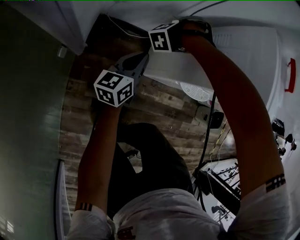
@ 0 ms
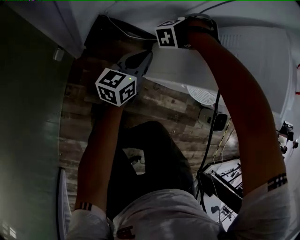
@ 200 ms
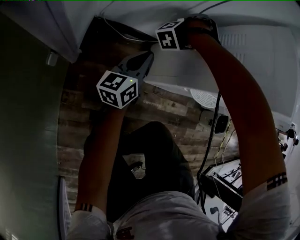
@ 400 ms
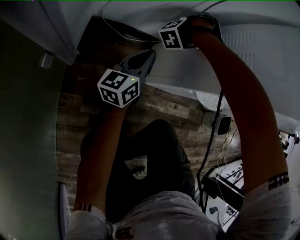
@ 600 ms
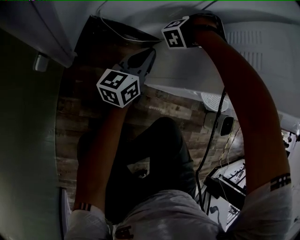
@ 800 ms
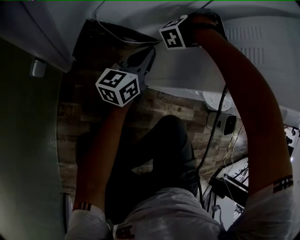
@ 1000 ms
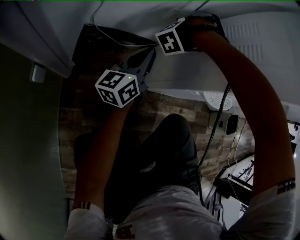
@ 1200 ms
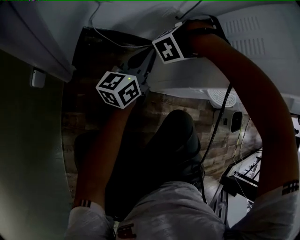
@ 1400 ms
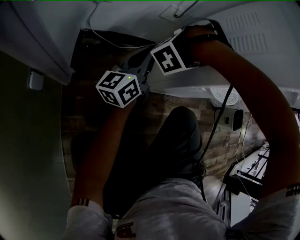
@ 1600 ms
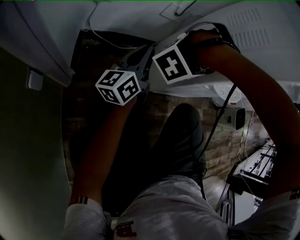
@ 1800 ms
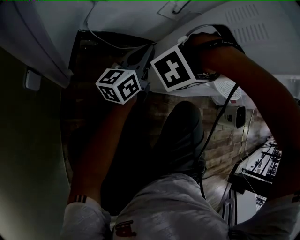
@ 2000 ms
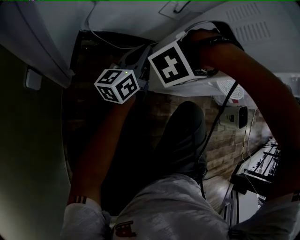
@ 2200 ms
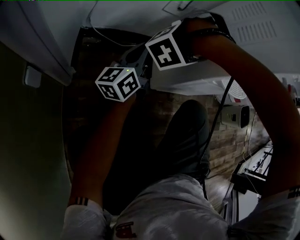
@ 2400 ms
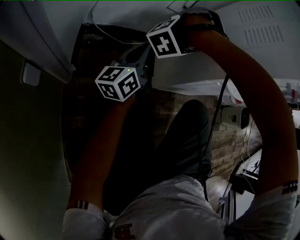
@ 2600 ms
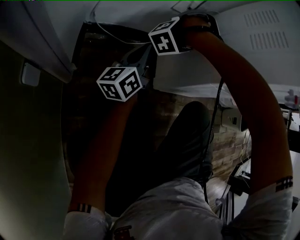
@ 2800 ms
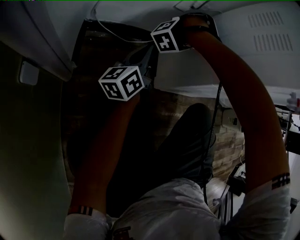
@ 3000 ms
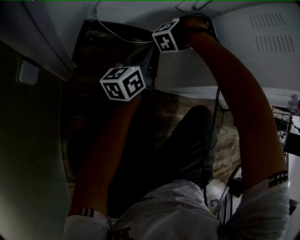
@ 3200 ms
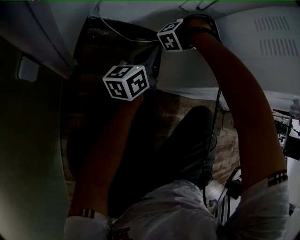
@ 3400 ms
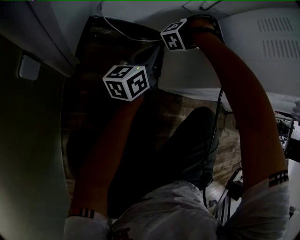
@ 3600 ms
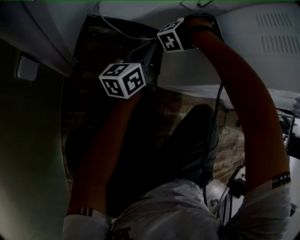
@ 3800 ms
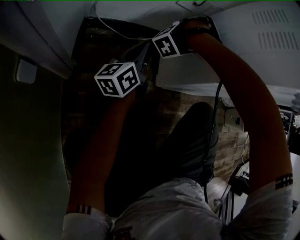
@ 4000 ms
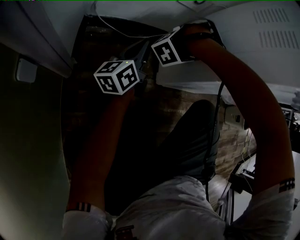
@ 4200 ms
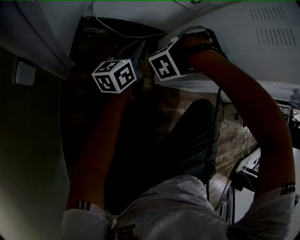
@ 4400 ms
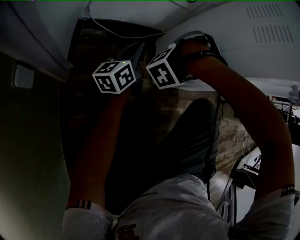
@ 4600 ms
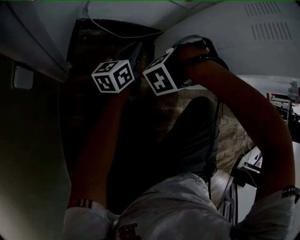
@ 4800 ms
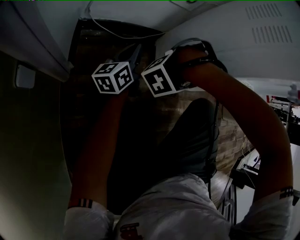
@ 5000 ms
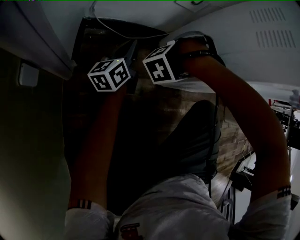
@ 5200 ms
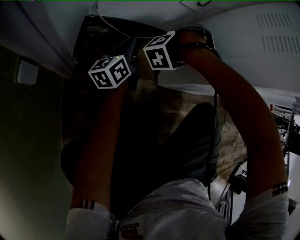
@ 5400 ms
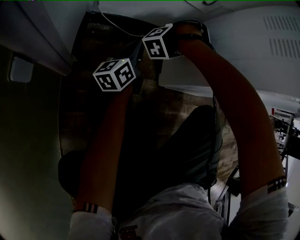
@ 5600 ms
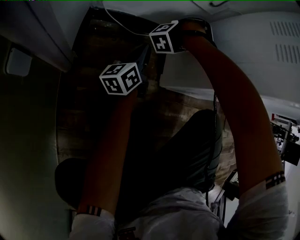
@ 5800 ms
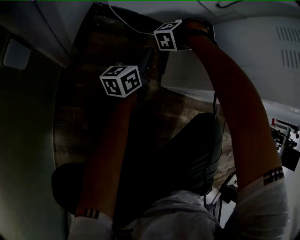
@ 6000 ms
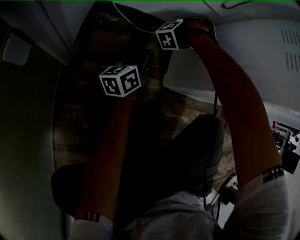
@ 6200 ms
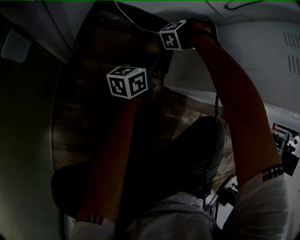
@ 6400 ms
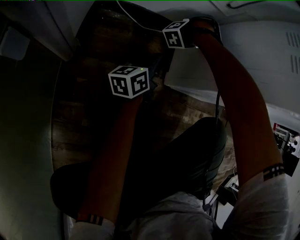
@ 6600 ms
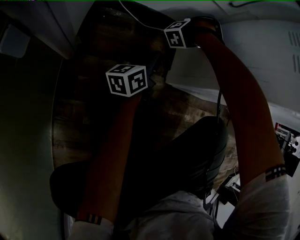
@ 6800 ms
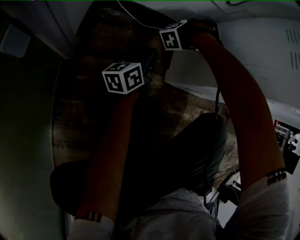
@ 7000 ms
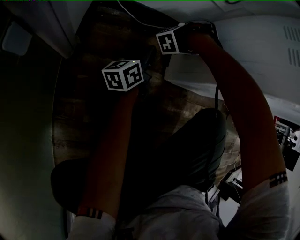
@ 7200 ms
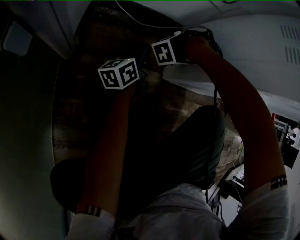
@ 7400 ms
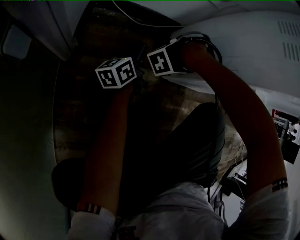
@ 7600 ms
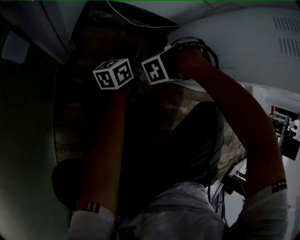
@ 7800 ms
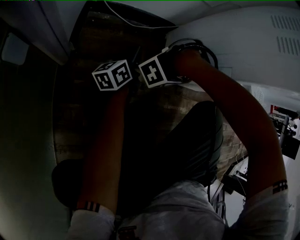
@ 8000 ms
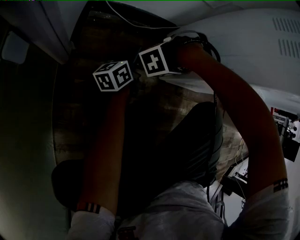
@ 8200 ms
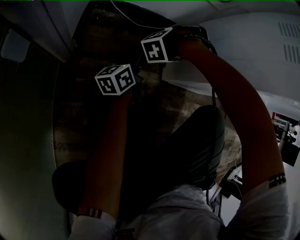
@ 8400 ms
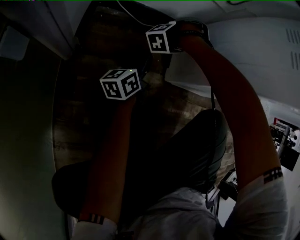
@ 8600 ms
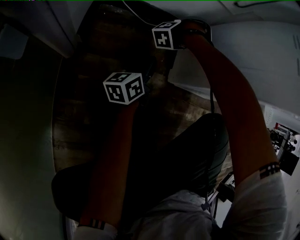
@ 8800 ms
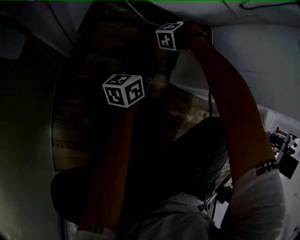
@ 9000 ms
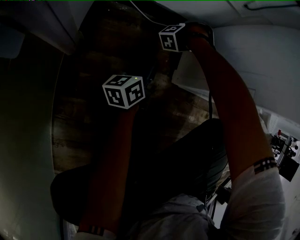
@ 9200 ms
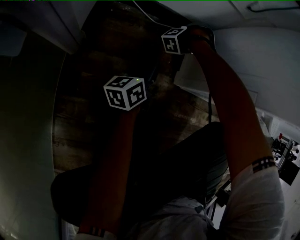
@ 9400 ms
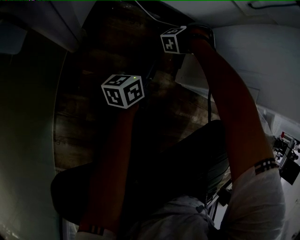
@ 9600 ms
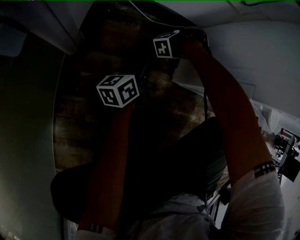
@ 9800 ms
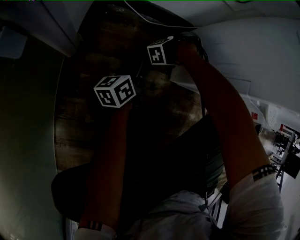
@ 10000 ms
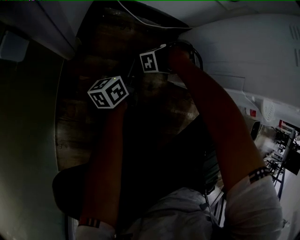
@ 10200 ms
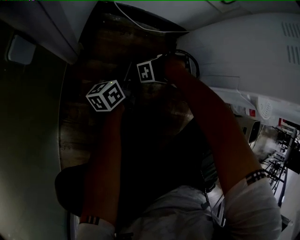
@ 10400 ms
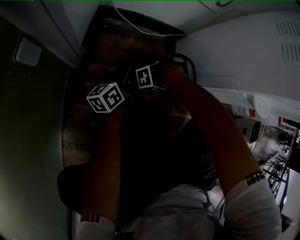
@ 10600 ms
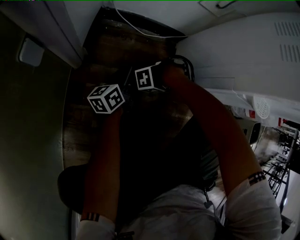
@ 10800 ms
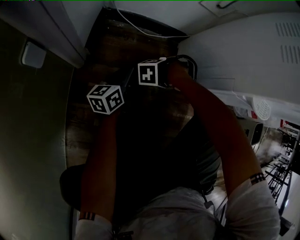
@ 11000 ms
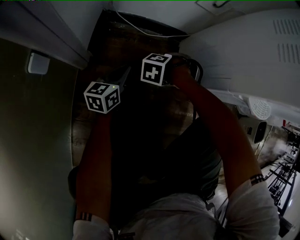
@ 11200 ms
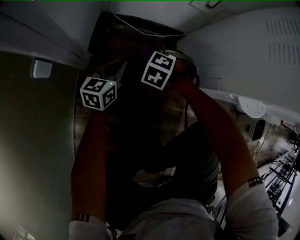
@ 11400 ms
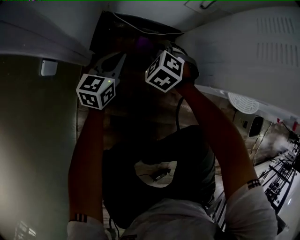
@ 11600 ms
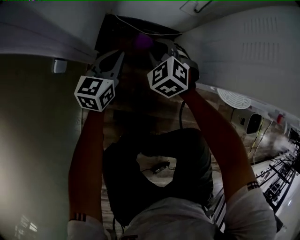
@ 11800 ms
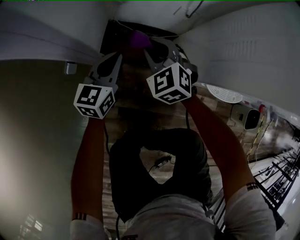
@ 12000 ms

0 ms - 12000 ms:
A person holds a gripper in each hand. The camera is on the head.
0 ms - 1600 ms: The left gripper travels downward by roughly 10 cm.
1600 ms - 3000 ms: The left gripper goes about 10 cm downward.
4400 ms - 6000 ms: The left gripper goes roughly 10 cm downward.
9000 ms - 10400 ms: The left gripper changes place by roughly 5 cm.
10400 ms - 12000 ms: The left gripper travels upward by roughly 35 cm, and rotates around the line of its fingers by some 40 degrees, clockwise from behind.

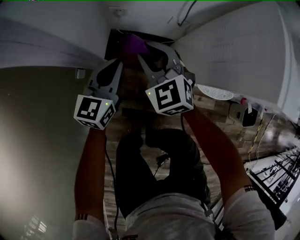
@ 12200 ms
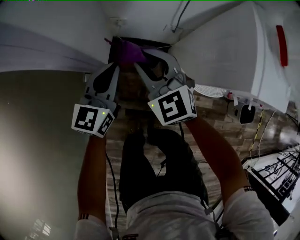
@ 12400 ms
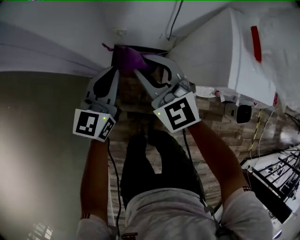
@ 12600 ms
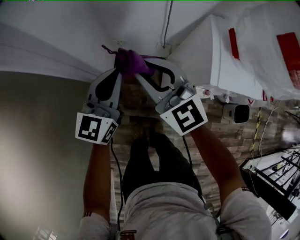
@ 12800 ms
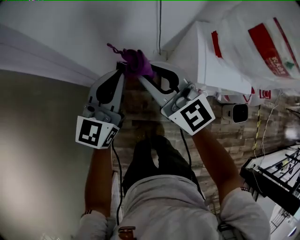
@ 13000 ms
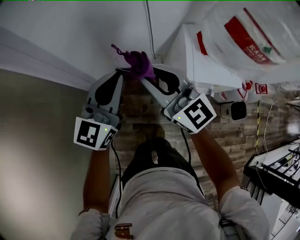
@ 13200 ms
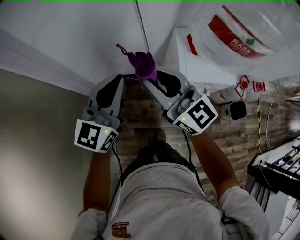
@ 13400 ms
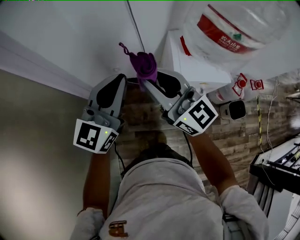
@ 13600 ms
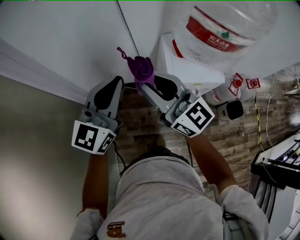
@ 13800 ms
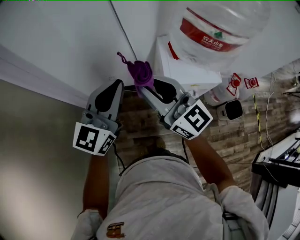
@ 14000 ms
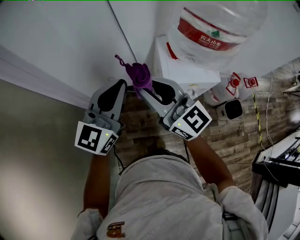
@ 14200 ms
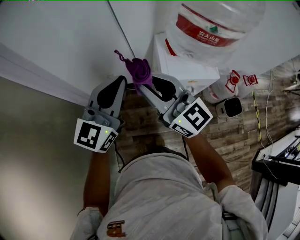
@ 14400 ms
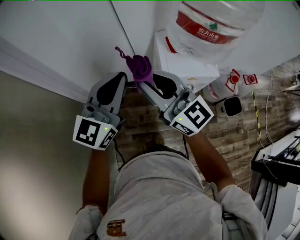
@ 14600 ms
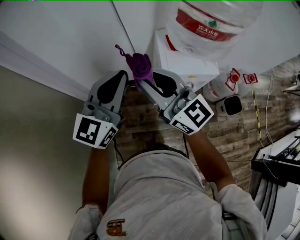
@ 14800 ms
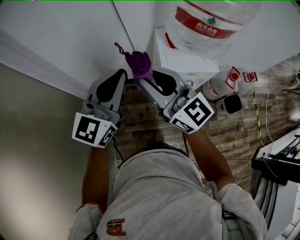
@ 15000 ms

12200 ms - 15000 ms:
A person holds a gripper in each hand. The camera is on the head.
12200 ms - 13600 ms: The left gripper heads upward, covering some 50 cm, and turns by roughly 30 degrees.
13600 ms - 15000 ms: The left gripper moves approximately 5 cm.

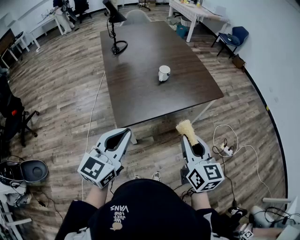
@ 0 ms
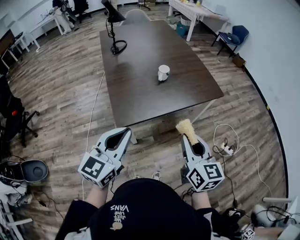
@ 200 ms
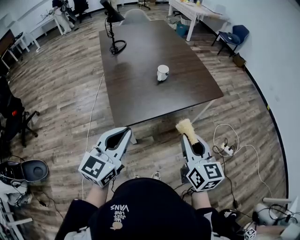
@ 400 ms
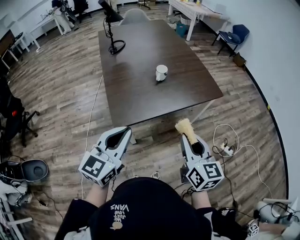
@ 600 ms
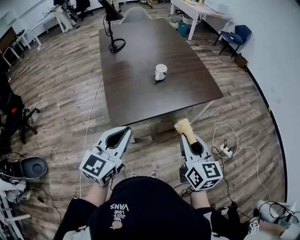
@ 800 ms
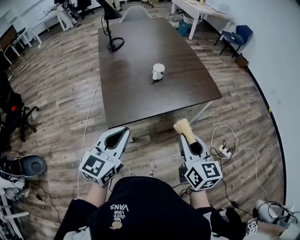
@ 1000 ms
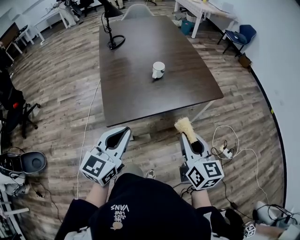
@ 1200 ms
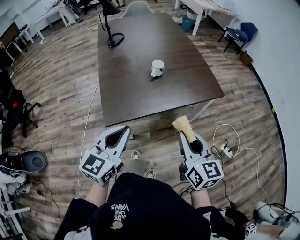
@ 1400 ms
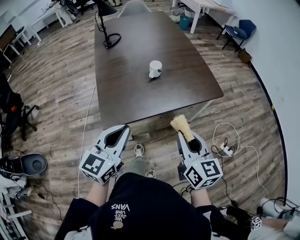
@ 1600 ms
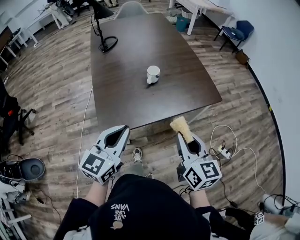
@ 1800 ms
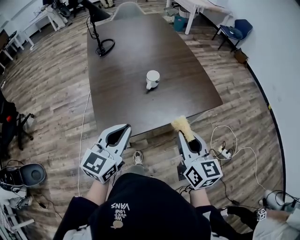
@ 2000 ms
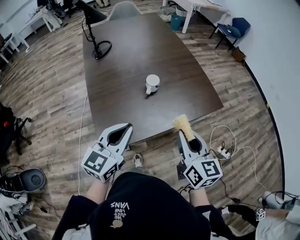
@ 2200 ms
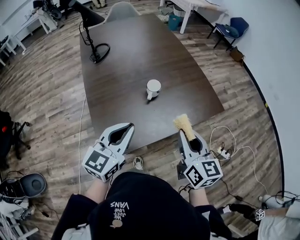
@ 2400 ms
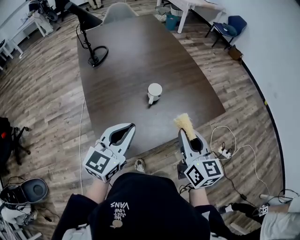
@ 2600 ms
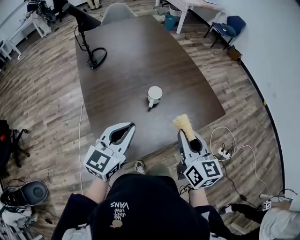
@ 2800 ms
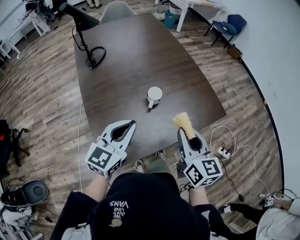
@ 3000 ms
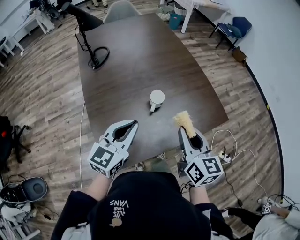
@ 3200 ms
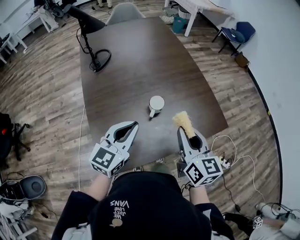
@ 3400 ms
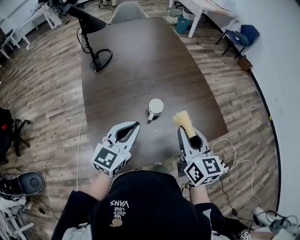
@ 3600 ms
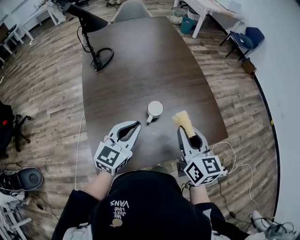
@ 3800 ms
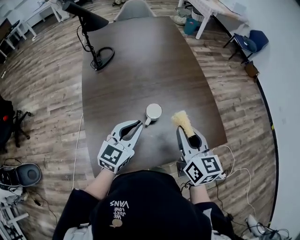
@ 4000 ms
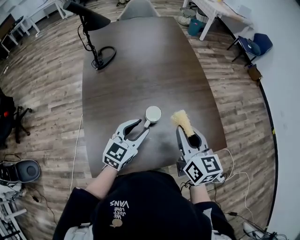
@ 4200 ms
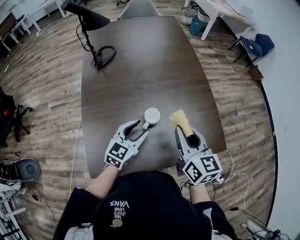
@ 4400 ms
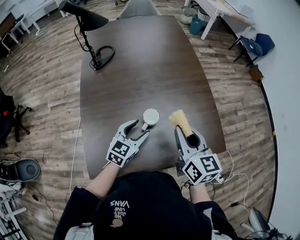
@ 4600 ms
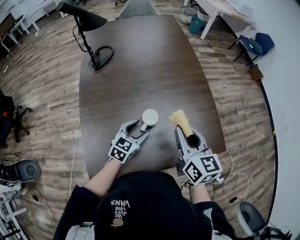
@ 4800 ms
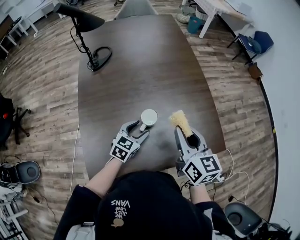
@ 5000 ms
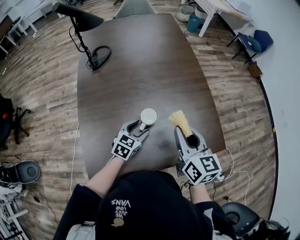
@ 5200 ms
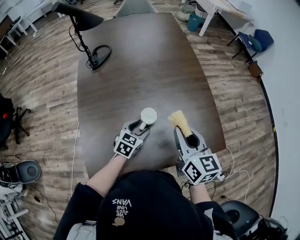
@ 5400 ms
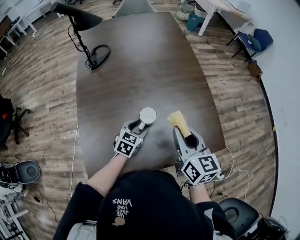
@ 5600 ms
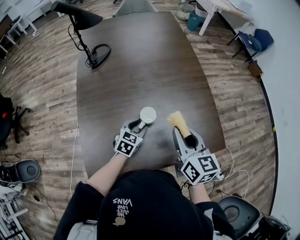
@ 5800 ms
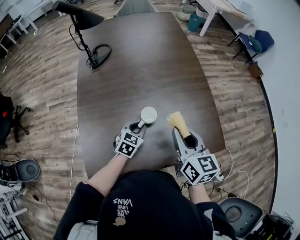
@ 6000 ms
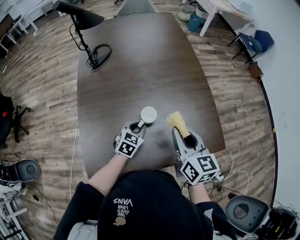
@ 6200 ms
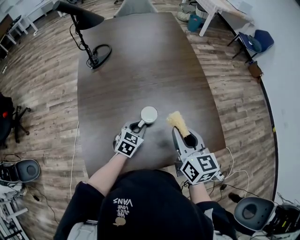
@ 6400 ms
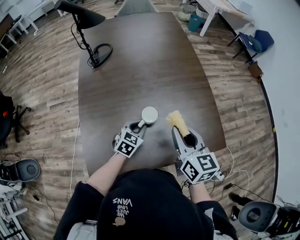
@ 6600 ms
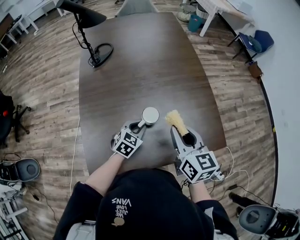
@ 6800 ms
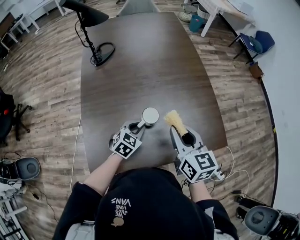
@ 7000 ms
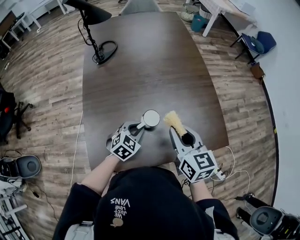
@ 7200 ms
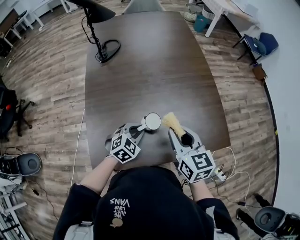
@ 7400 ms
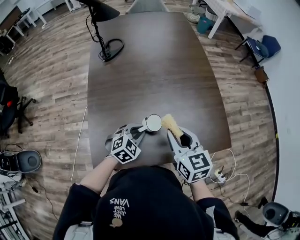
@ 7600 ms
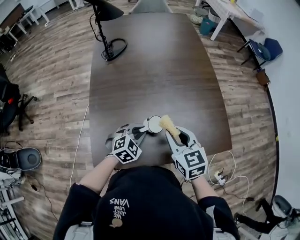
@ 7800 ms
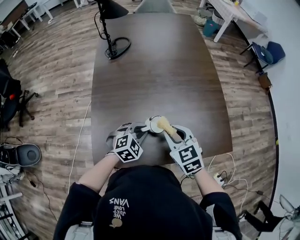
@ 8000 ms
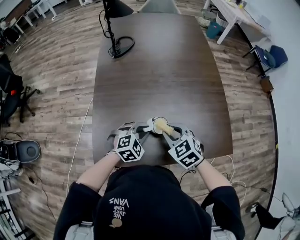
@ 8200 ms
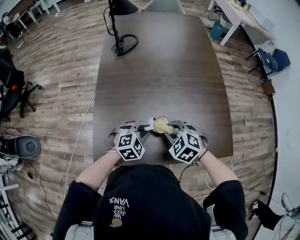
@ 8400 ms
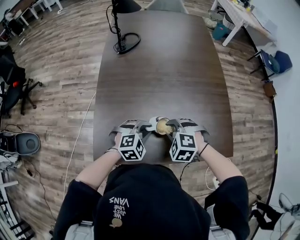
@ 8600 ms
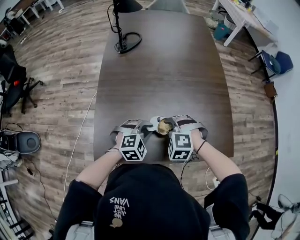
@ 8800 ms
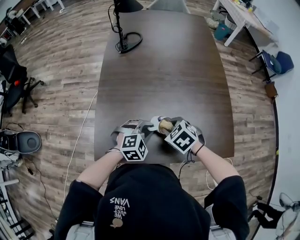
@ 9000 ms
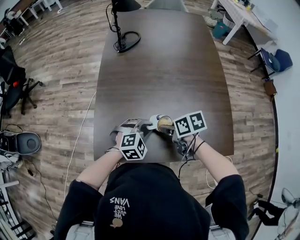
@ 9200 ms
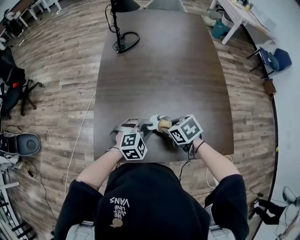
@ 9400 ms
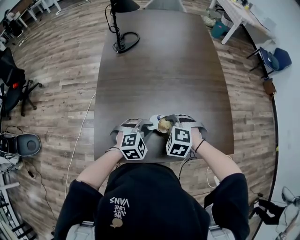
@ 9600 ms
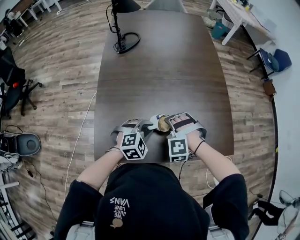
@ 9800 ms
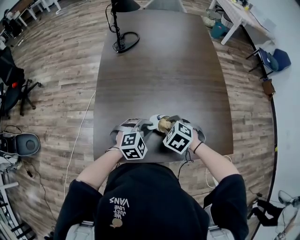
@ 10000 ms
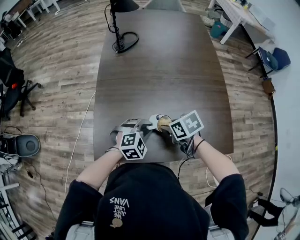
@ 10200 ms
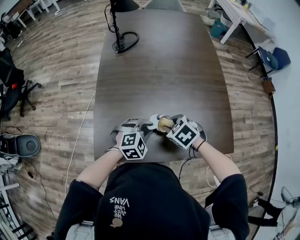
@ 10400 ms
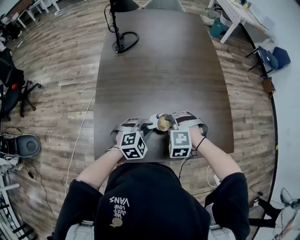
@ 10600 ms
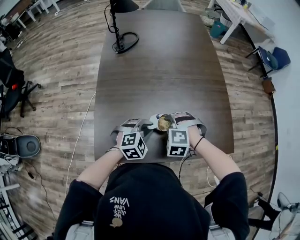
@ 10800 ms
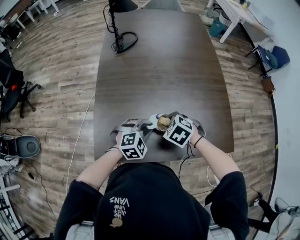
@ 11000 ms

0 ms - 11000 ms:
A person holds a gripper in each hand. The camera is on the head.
0 ms - 1600 ms: The two grippers go some 10 cm forward and to the right.
1600 ms - 3200 ms: Both grippers travel together forward, some 25 cm.
3200 ms - 4800 ms: The right gripper travels forward by roughly 15 cm, while the left gripper goes about 20 cm downward and forward, rotates some 20 degrees, and opens its fingers.
4800 ms - 6200 ms: The left gripper travels downward by about 5 cm, and closes its fingers.
6200 ms - 7800 ms: The left gripper travels backward by about 5 cm, and rotates approximately 30 degrees. The right gripper travels to the left by some 10 cm, and changes its angle by some 20 degrees.
7800 ms - 9400 ms: The right gripper goes some 10 cm downward, and turns by roughly 50 degrees.
9400 ms - 11000 ms: The right gripper swivels about 30 degrees.
